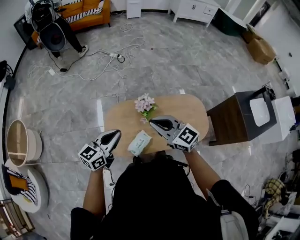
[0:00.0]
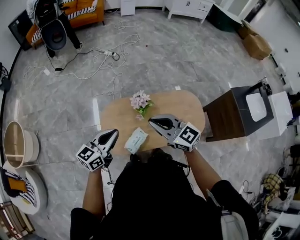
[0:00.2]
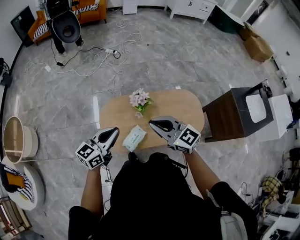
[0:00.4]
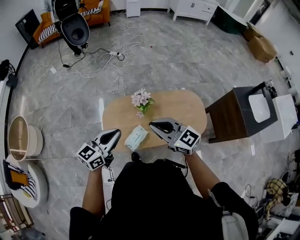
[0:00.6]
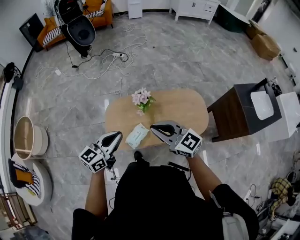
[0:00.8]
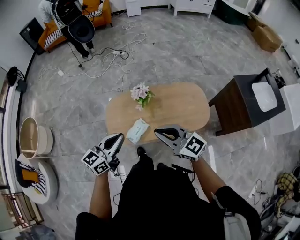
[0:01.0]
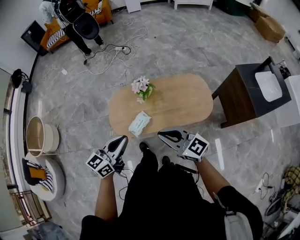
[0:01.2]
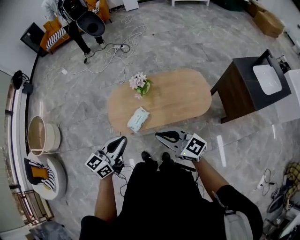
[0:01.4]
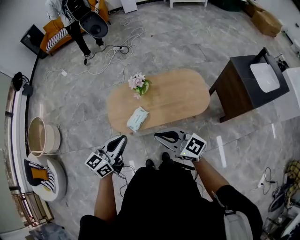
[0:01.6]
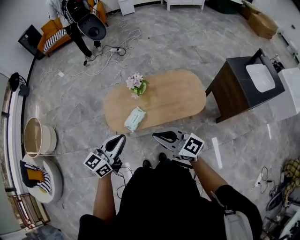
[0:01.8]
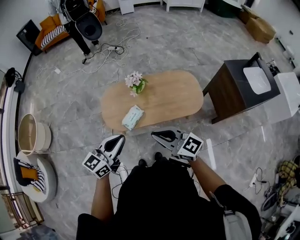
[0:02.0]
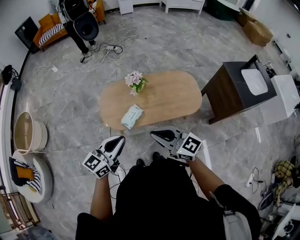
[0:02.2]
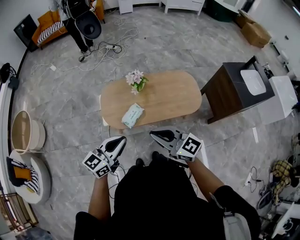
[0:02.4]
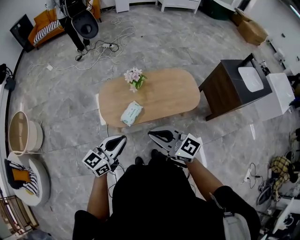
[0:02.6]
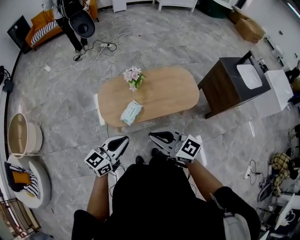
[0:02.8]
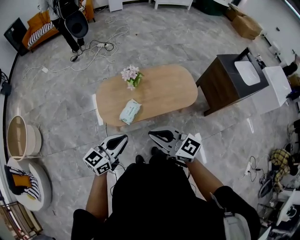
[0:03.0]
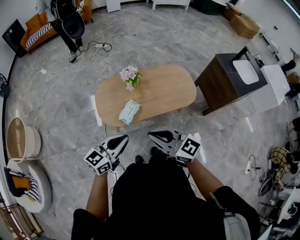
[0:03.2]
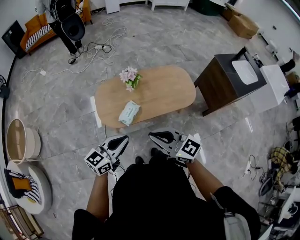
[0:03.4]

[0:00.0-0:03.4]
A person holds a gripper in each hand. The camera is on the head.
0:00.0 to 0:01.6: The grippers both shift backward and to the right by approximately 30 cm.
0:01.6 to 0:03.4: The grippers both shift to the left and backward by some 10 cm.

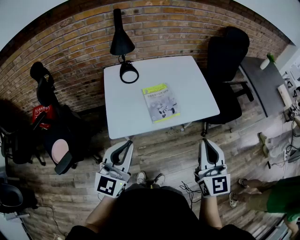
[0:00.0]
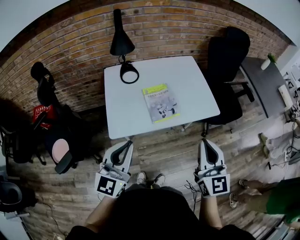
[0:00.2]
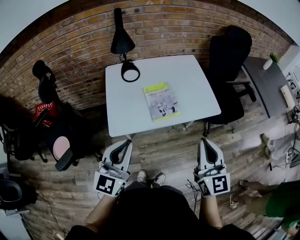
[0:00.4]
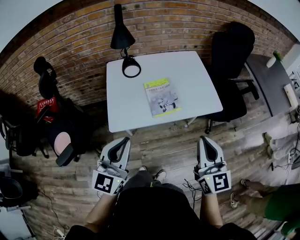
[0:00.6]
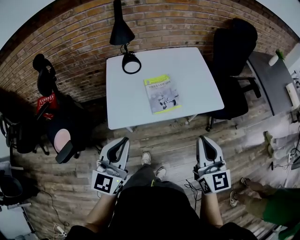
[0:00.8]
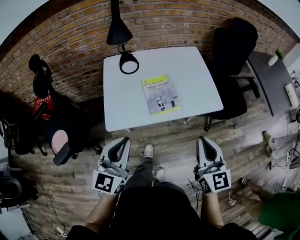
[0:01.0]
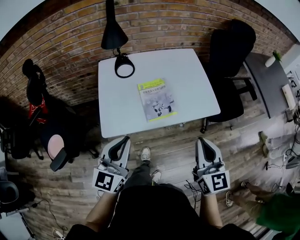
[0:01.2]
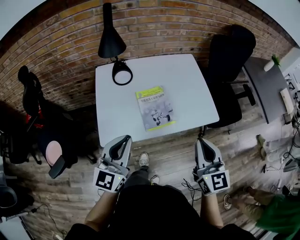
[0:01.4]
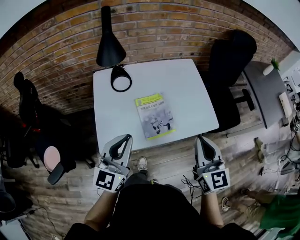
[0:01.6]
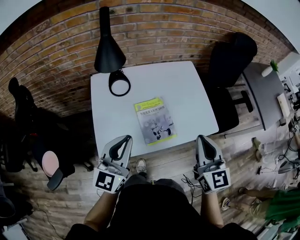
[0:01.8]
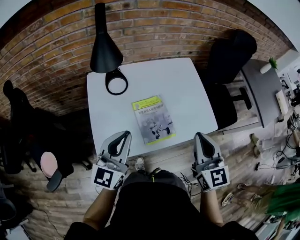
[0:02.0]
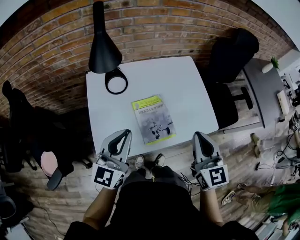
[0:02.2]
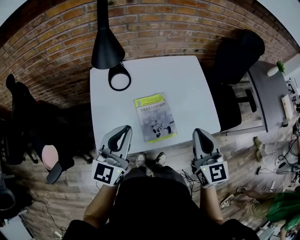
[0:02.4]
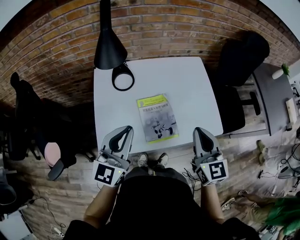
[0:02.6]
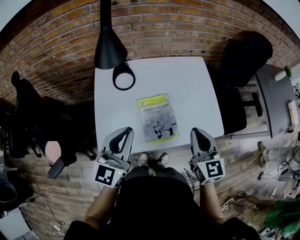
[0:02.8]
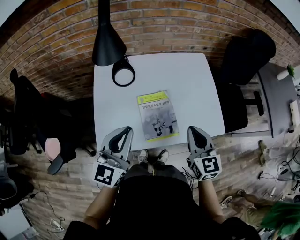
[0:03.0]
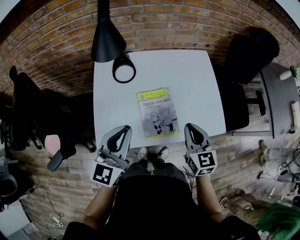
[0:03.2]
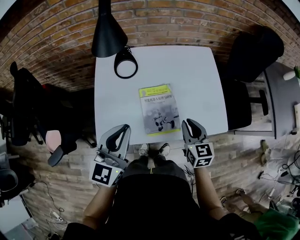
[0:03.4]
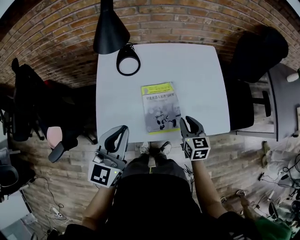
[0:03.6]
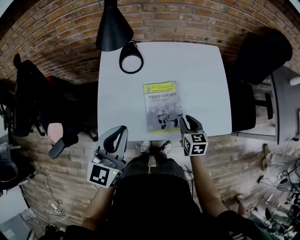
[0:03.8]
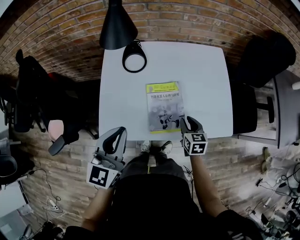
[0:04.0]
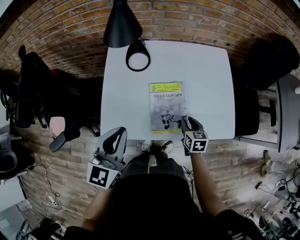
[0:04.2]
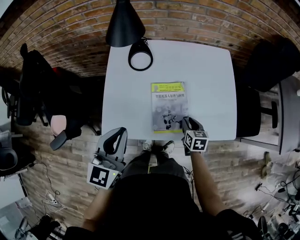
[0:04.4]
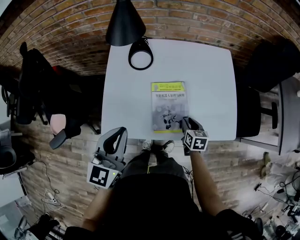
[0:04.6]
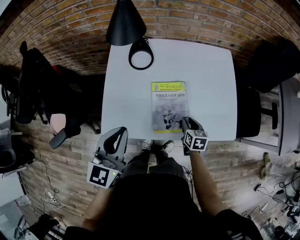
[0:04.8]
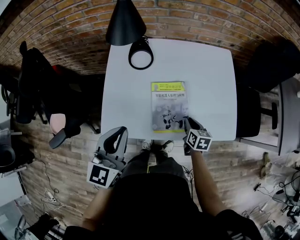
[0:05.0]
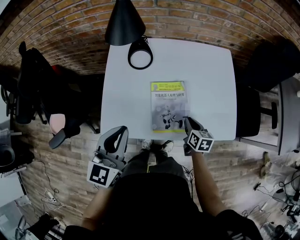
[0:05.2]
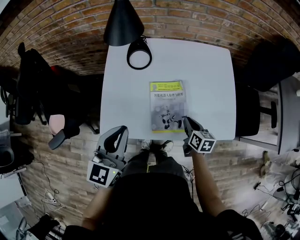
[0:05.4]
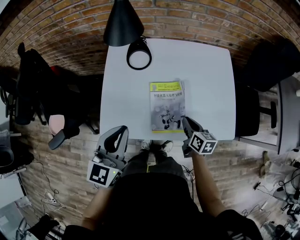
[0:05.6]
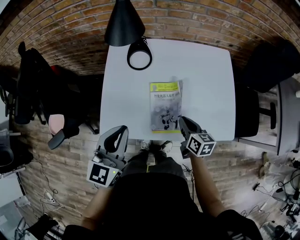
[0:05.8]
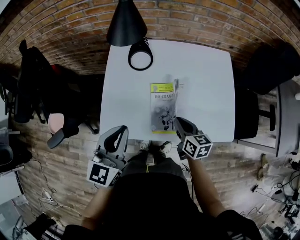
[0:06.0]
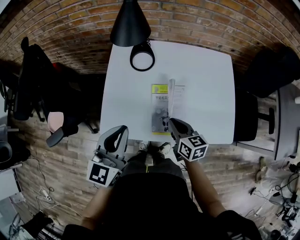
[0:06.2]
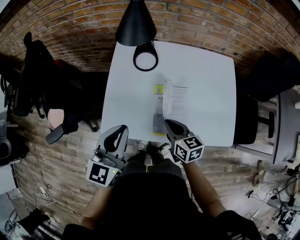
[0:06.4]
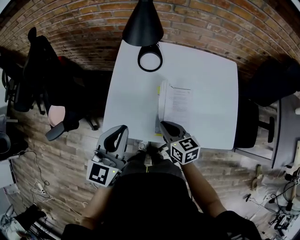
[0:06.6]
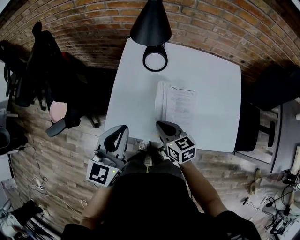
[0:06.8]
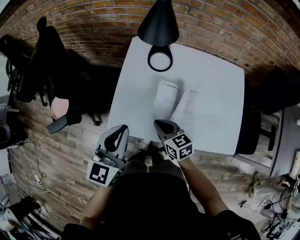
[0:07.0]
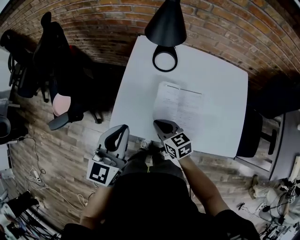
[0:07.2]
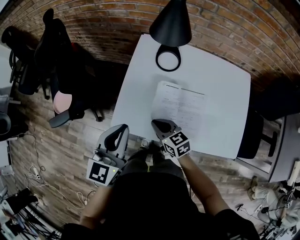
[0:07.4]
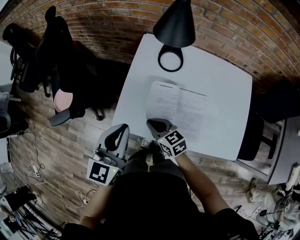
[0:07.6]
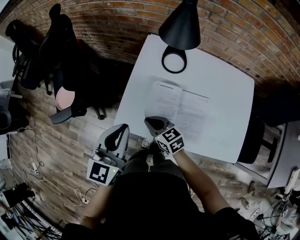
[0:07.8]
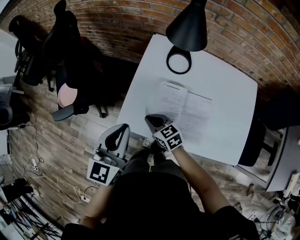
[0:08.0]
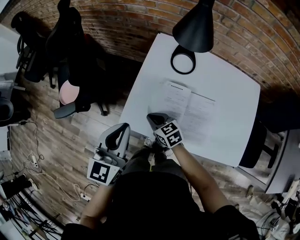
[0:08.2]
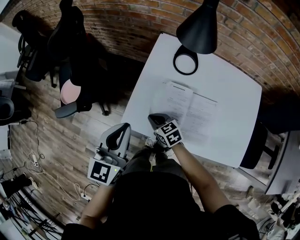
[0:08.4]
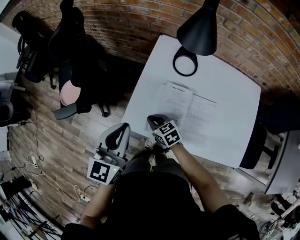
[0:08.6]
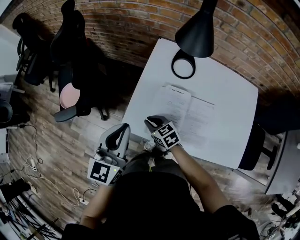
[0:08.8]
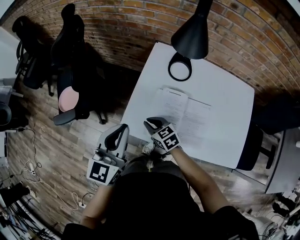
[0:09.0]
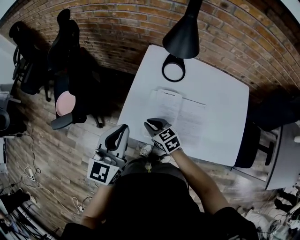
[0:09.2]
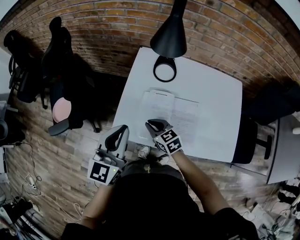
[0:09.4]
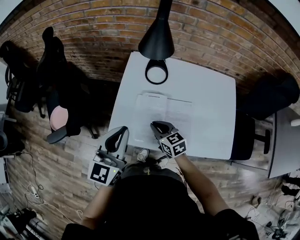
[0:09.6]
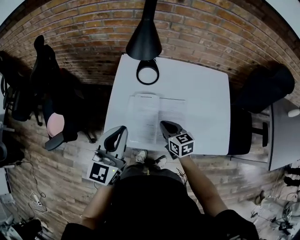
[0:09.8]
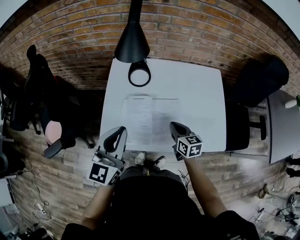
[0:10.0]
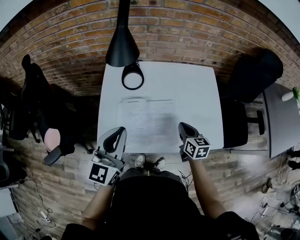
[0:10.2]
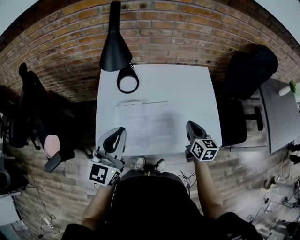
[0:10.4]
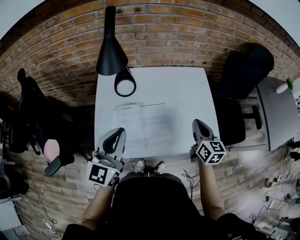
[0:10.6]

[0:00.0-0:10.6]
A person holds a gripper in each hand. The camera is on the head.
0:00.0 to 0:01.6: The two grippers go some 15 cm forward.
0:01.6 to 0:03.0: The left gripper shifts roughly 5 cm forward; the right gripper travels forward and downward by some 15 cm.
0:03.0 to 0:04.6: The left gripper shifts by some 5 cm. Meanwhile the right gripper is displaced downward by roughly 25 cm, changes its angle by approximately 30 degrees, and opens.
0:04.6 to 0:06.0: The right gripper travels upward and to the left by some 10 cm, swivels roughly 20 degrees, and closes its fingers.
0:06.0 to 0:07.6: The left gripper heads to the left, covering roughly 10 cm, while the right gripper is displaced to the left by about 20 cm, and turns by approximately 40 degrees.
0:07.6 to 0:09.0: The right gripper changes place by roughly 5 cm; the left gripper moves about 5 cm.
0:09.0 to 0:10.6: The right gripper moves approximately 50 cm, and turns by some 70 degrees. Meanwhile the left gripper changes place by some 15 cm, and turns by roughly 20 degrees.

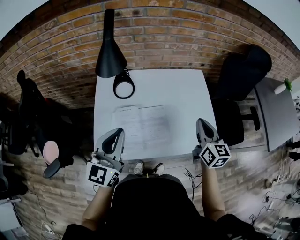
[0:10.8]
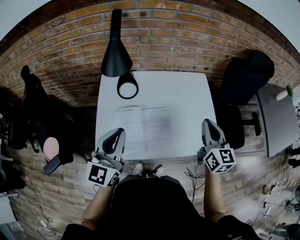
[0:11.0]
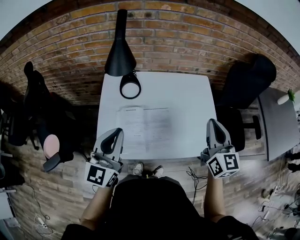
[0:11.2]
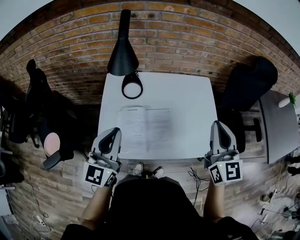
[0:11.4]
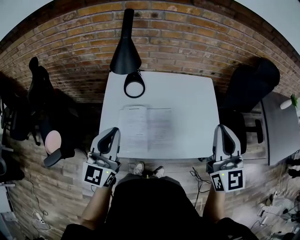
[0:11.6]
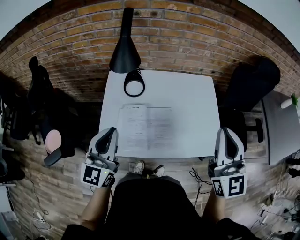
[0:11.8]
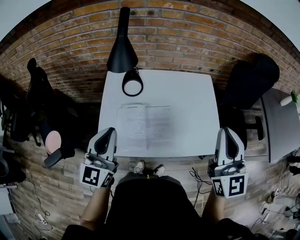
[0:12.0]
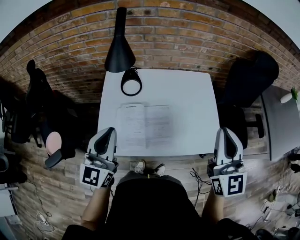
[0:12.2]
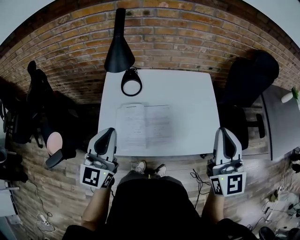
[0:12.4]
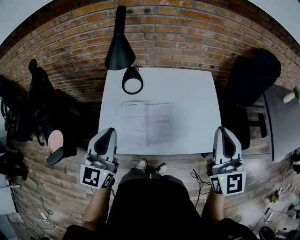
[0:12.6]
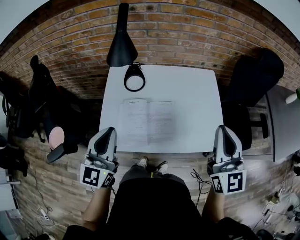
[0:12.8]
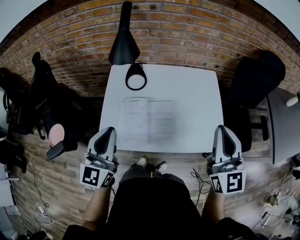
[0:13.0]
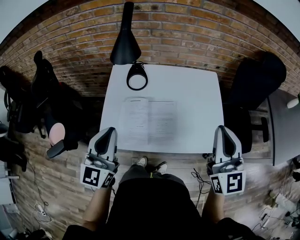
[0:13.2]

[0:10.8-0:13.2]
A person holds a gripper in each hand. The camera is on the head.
0:10.8 to 0:12.0: The left gripper changes place by approximately 5 cm. The right gripper goes approximately 20 cm upward, and rotates approximately 30 degrees.
0:12.0 to 0:13.2: The grippers make only small movements.

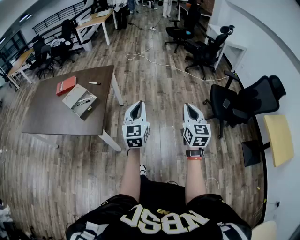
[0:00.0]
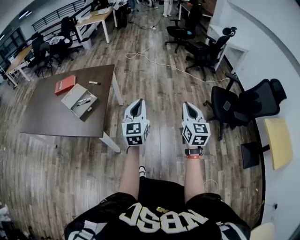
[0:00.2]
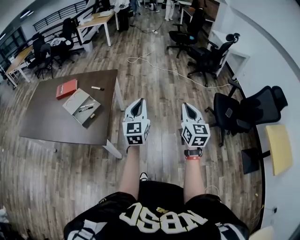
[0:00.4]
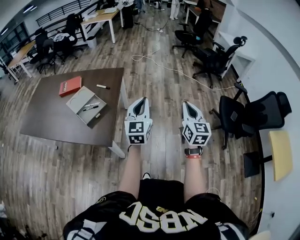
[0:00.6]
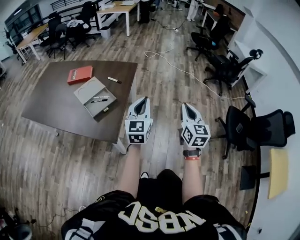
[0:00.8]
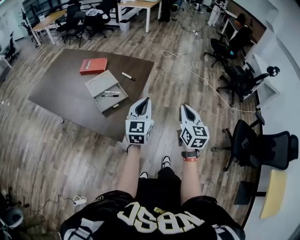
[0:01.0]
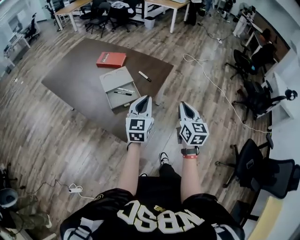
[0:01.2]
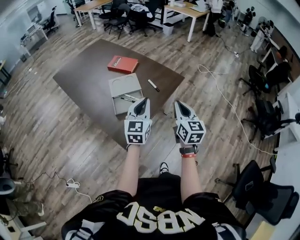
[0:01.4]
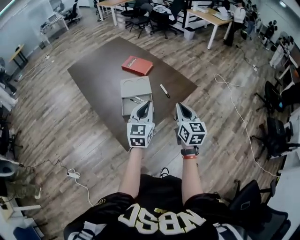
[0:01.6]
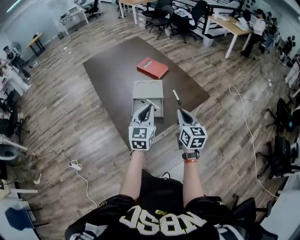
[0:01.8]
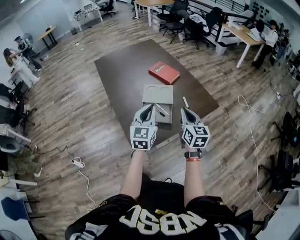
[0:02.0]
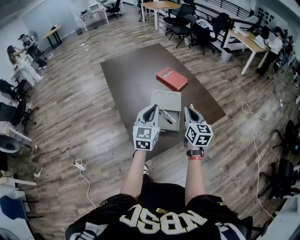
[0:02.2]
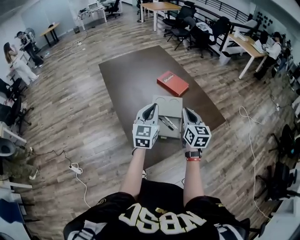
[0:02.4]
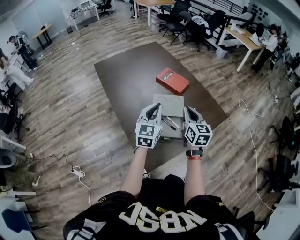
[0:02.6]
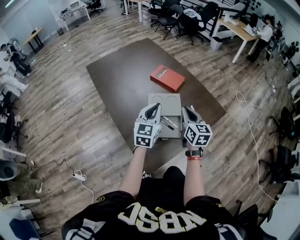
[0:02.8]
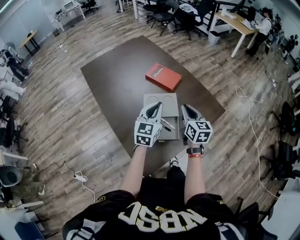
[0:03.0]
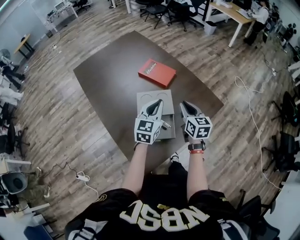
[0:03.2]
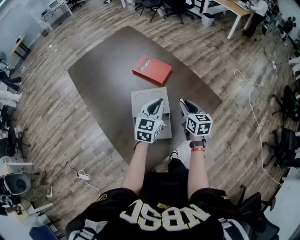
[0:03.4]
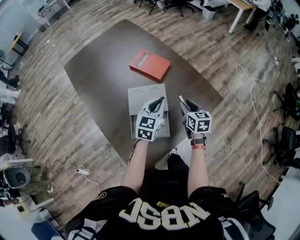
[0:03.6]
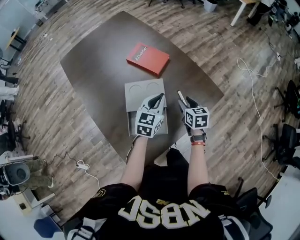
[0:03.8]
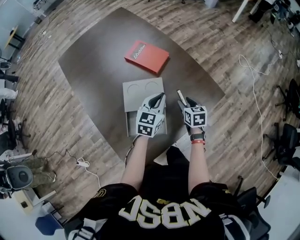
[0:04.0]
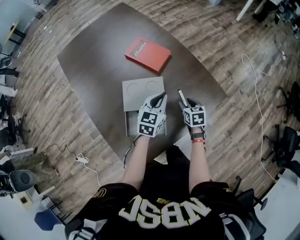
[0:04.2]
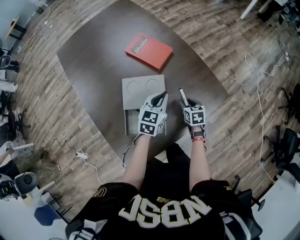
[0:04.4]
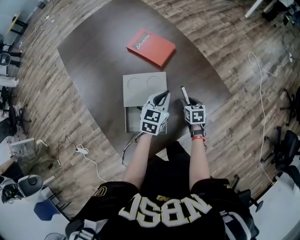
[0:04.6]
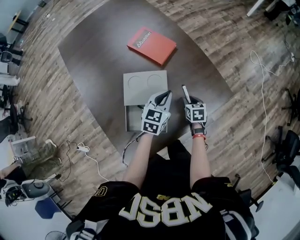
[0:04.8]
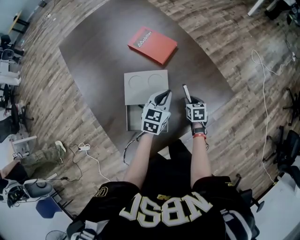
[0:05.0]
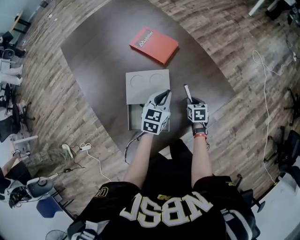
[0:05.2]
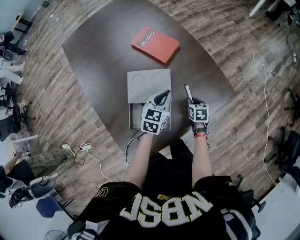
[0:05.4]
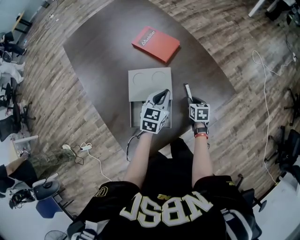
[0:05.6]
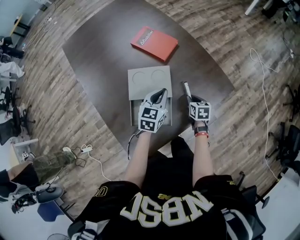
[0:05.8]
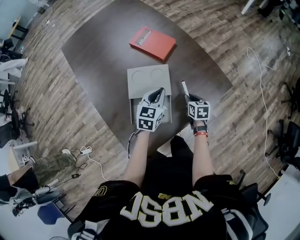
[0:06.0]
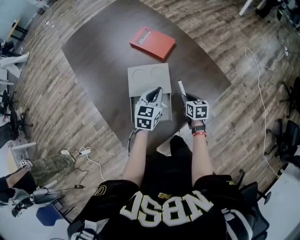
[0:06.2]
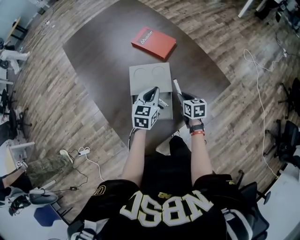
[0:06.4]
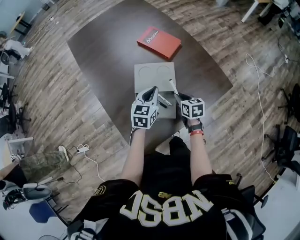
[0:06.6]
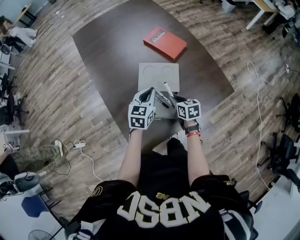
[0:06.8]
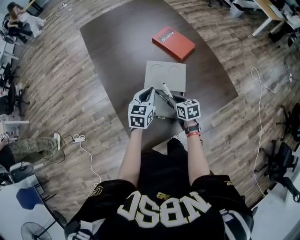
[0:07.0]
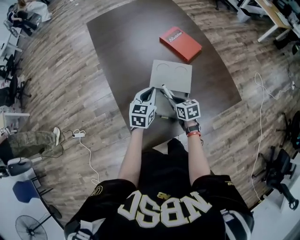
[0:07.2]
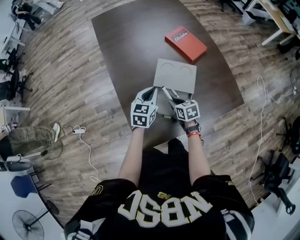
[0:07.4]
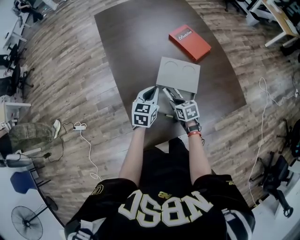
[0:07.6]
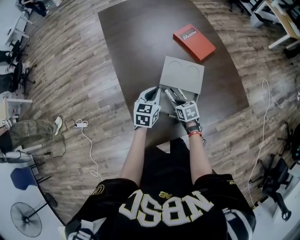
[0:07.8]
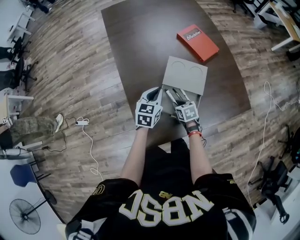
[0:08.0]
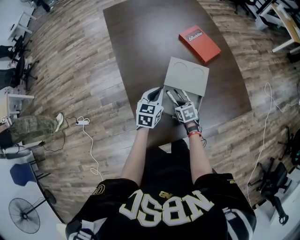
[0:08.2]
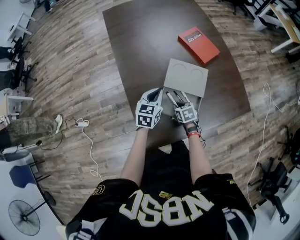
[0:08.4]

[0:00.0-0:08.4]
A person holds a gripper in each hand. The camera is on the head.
0:00.0 to 0:01.4: Both grippers are carried some 50 cm. The right gripper turns by some 40 degrees, while the left gripper rotates some 30 degrees.
0:01.4 to 0:02.8: Both grippers move forward and to the left, approximately 25 cm.
0:02.8 to 0:04.2: The right gripper is displaced downward, to the right and forward by about 30 cm, tips its fingers downward by about 30 degrees, and opens its fingers, while the left gripper goes approximately 25 cm to the right, downward and forward, and rotates some 20 degrees.
0:04.2 to 0:05.6: The right gripper shifts roughly 5 cm downward, and closes its fingers.
0:05.6 to 0:07.0: The left gripper is displaced to the left by roughly 15 cm; the right gripper shifts some 20 cm to the left and upward, and turns by some 20 degrees.
0:07.0 to 0:08.4: The right gripper is displaced downward and to the left by approximately 10 cm, and turns by approximately 20 degrees, while the left gripper heads to the left, covering about 5 cm.
